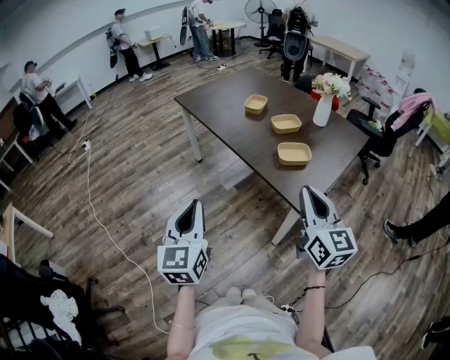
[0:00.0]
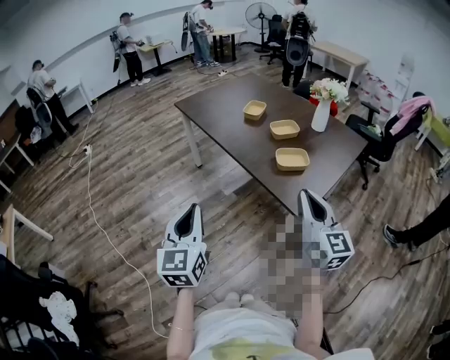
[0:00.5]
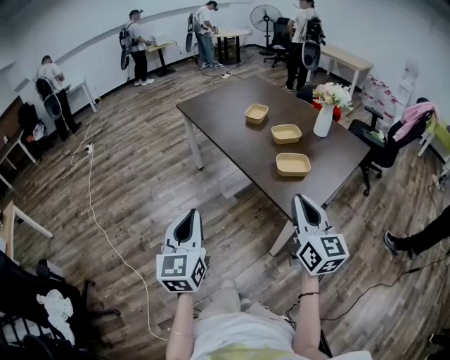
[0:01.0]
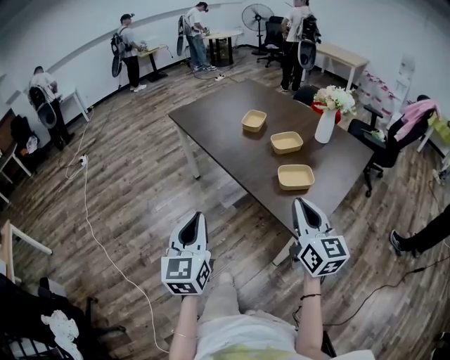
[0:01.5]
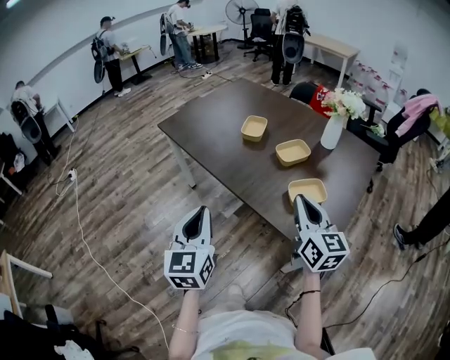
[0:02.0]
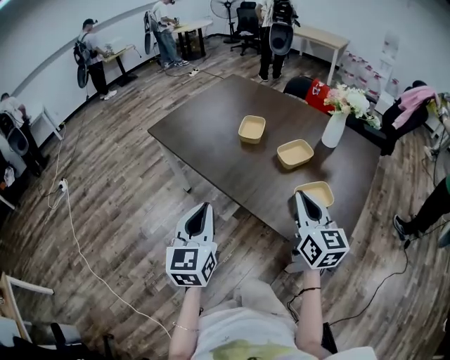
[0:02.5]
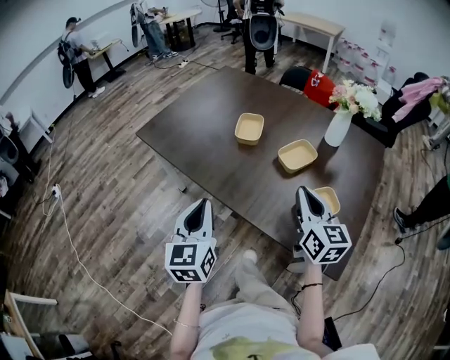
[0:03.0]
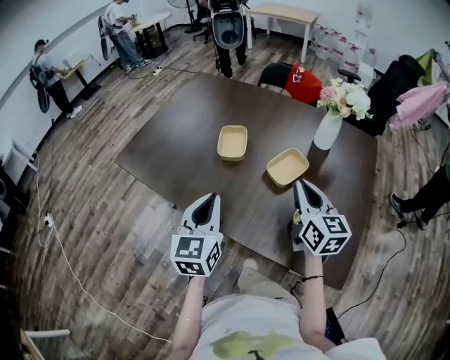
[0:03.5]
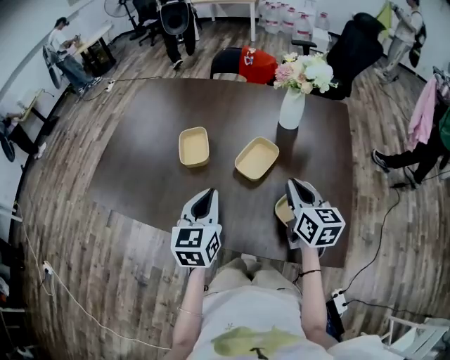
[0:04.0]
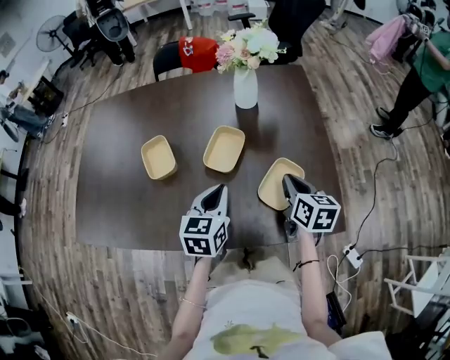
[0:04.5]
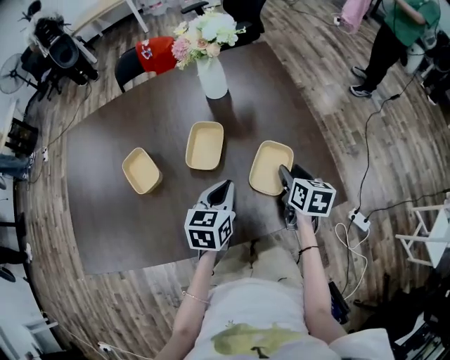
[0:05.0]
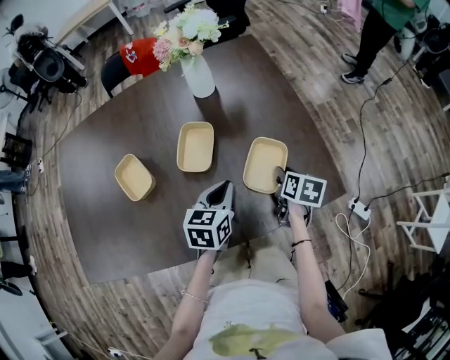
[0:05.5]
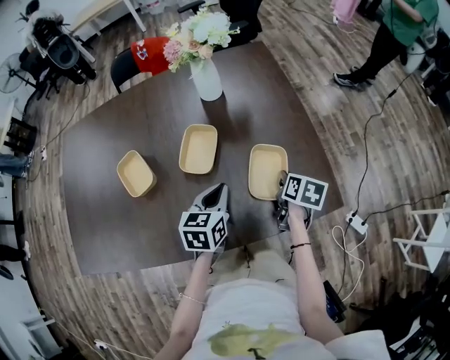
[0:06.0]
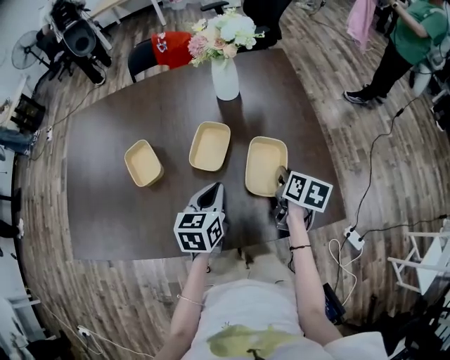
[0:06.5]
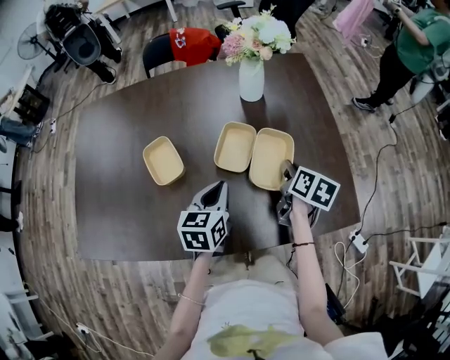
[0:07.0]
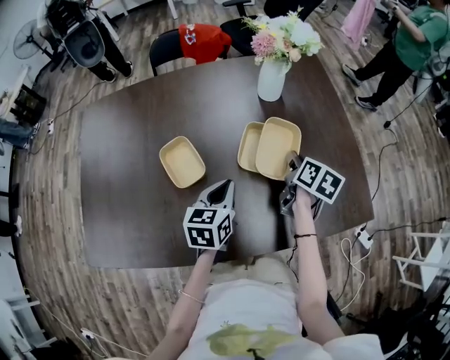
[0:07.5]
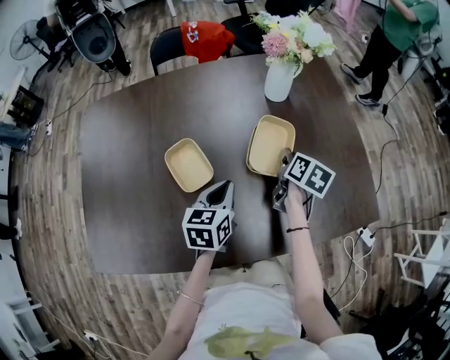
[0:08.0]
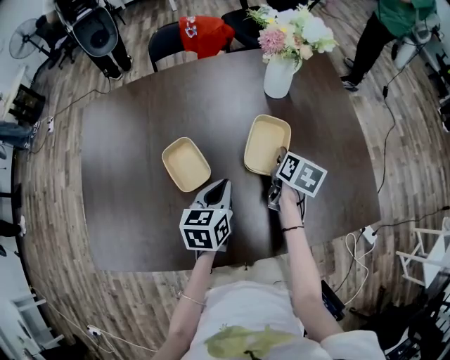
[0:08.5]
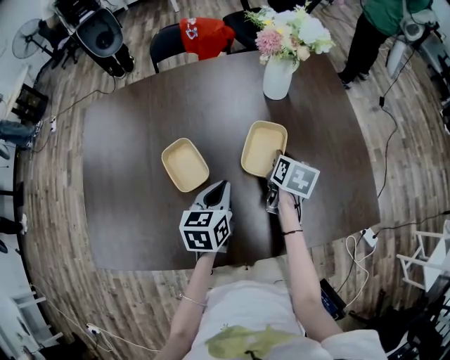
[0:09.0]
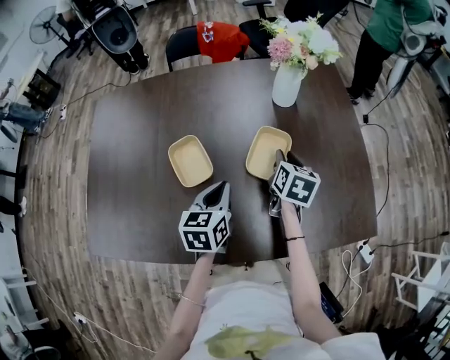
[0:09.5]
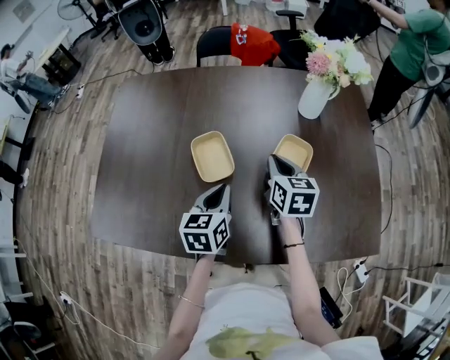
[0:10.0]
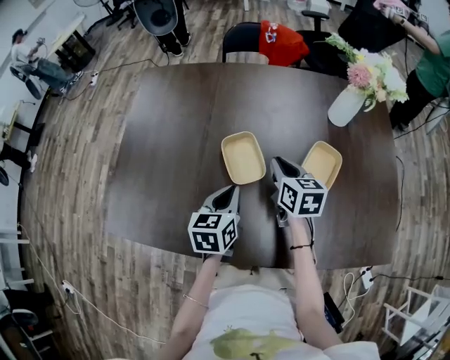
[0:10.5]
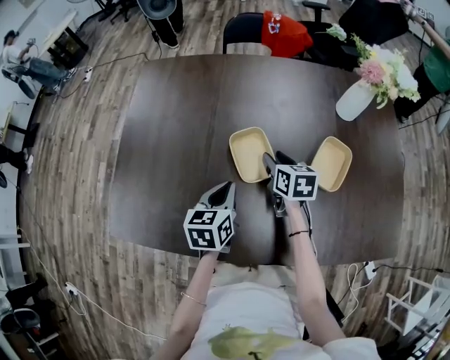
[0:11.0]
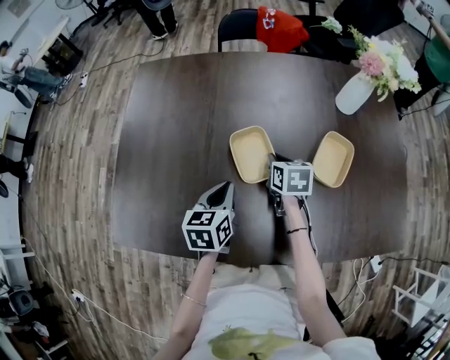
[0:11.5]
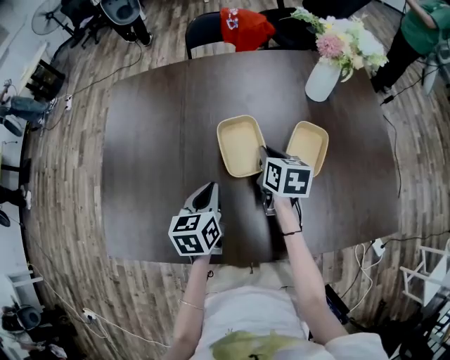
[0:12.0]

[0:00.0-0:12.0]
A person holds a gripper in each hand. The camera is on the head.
0:00.0 to 0:02.0: The grippers both shift forward by about 25 cm.
0:02.0 to 0:04.0: The right gripper ends up roughly 20 cm from where it was, and turns by about 30 degrees. The left gripper shifts by some 35 cm, and changes its angle by roughly 40 degrees.
0:04.0 to 0:06.0: The right gripper heads downward, covering about 15 cm, tilts its fingers approximately 30 degrees downward, and opens, then closes once more. Meanwhile the left gripper moves roughly 20 cm, and changes its angle by approximately 40 degrees.
0:06.0 to 0:08.0: The two grippers go approximately 20 cm to the left.
0:08.0 to 0:10.0: The left gripper heads to the left, covering approximately 5 cm. The right gripper travels to the left and upward by approximately 15 cm, and swivels roughly 40 degrees.
0:10.0 to 0:12.0: Both grippers travel together to the left, about 10 cm. The right gripper opens, then closes again.

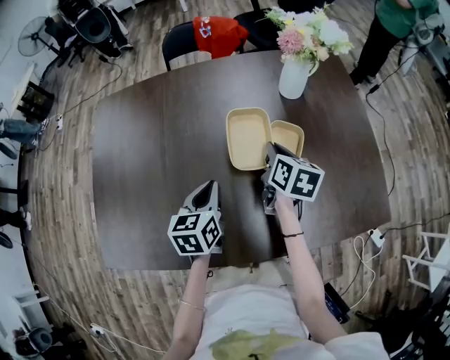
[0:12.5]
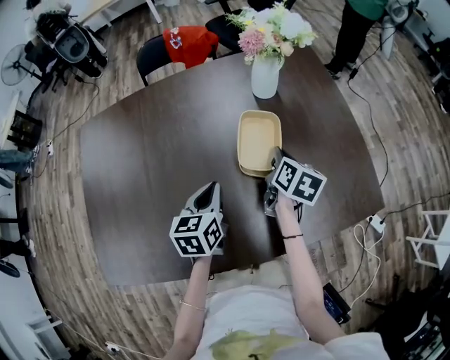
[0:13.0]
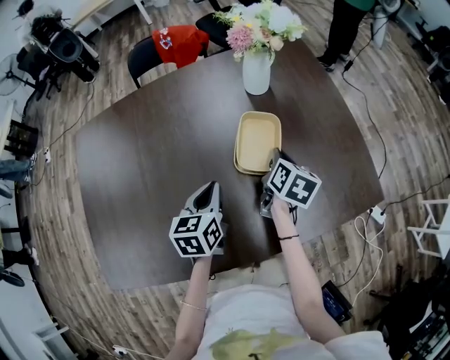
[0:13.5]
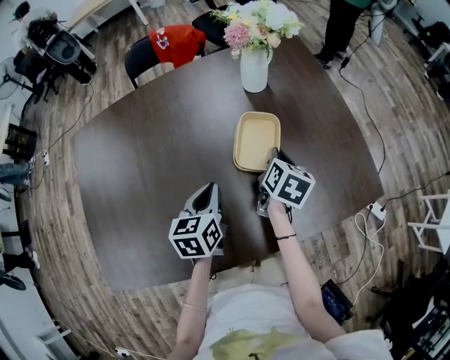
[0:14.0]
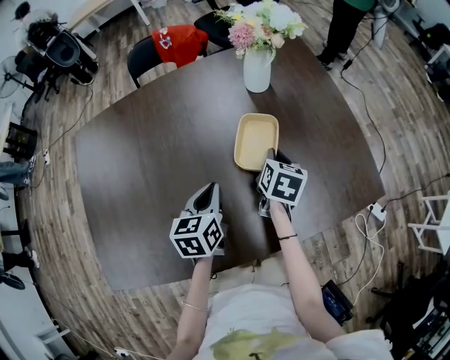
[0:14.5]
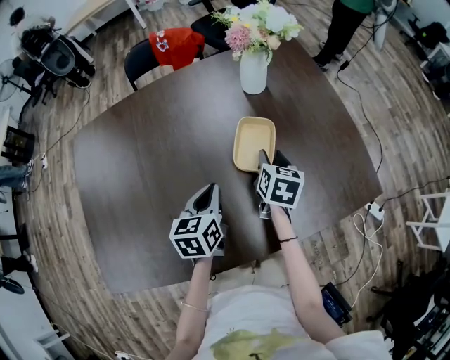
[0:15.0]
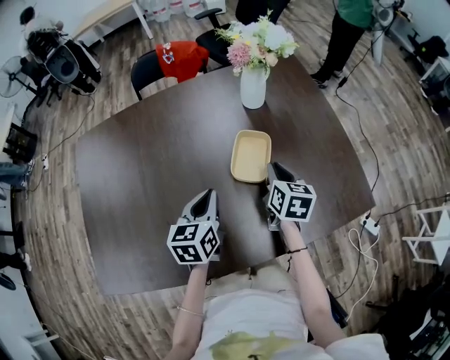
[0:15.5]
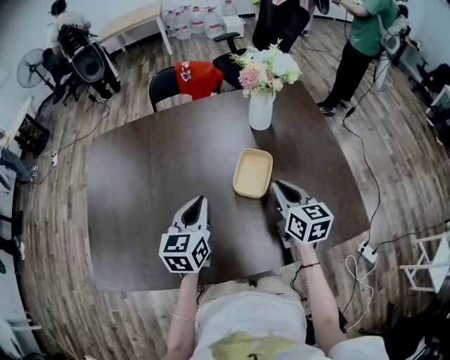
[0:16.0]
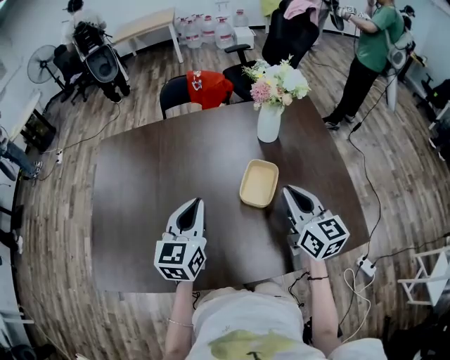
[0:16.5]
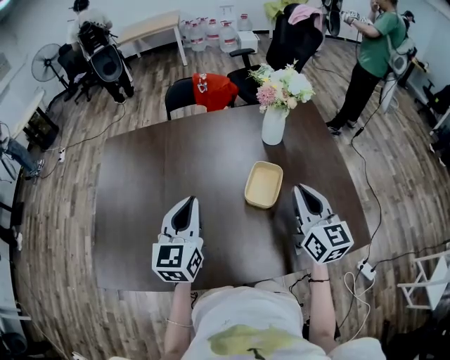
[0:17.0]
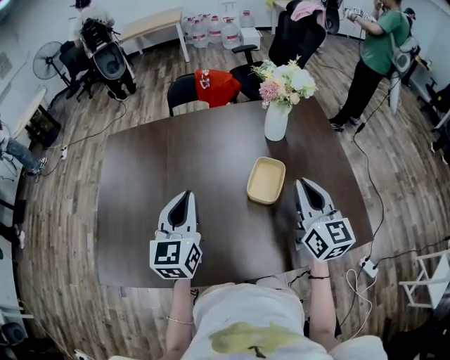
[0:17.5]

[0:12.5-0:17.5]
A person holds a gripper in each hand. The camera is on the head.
0:12.5 to 0:15.0: The grippers both shift to the right by some 5 cm. The right gripper opens up.
0:15.0 to 0:17.5: The right gripper shifts approximately 20 cm upward, points its fingers approximately 40 degrees further upward, and closes its fingers. Meanwhile the left gripper heads upward and to the left, covering some 20 cm, and rotates approximately 30 degrees.

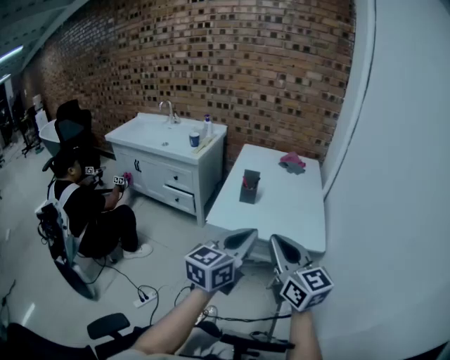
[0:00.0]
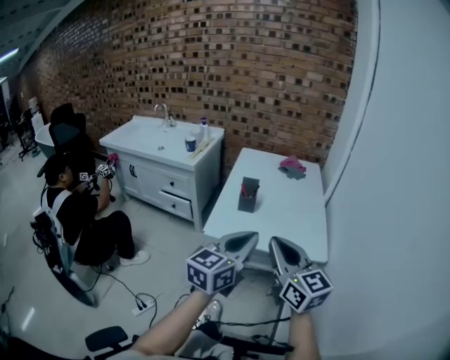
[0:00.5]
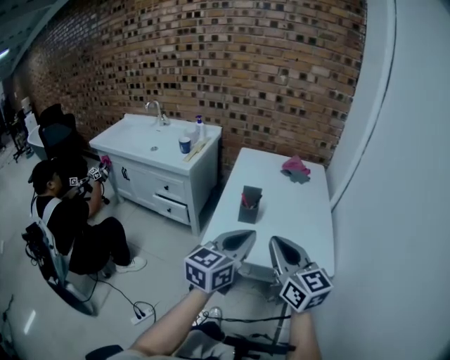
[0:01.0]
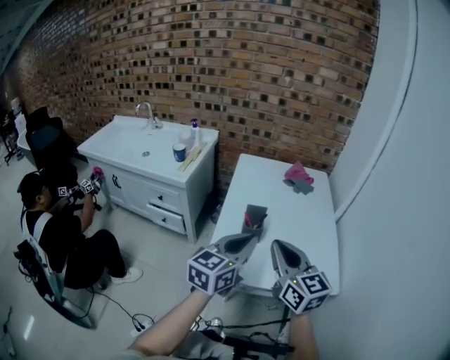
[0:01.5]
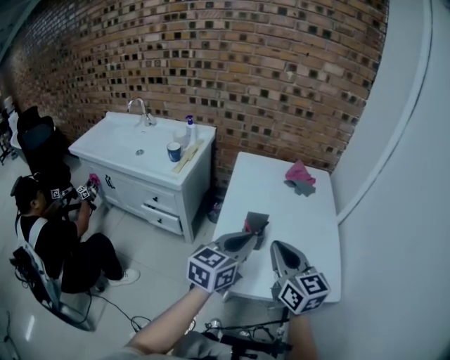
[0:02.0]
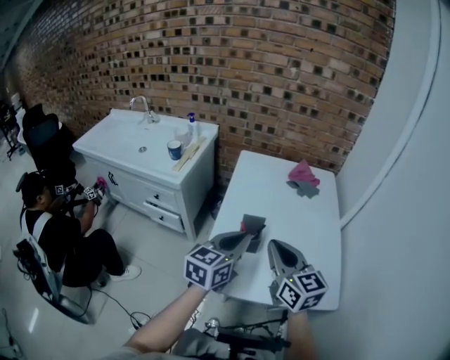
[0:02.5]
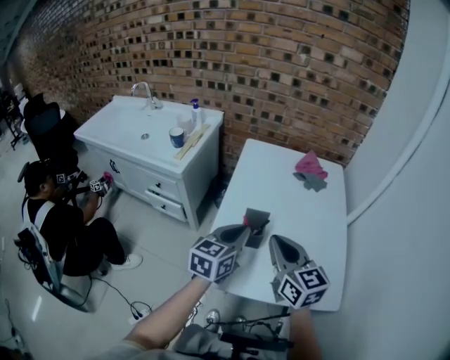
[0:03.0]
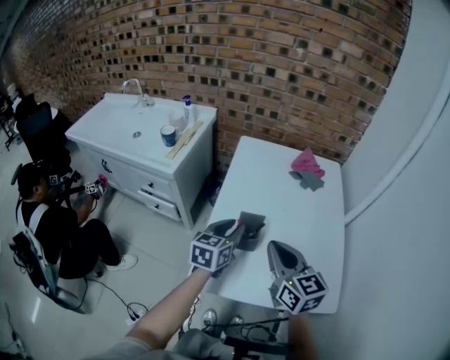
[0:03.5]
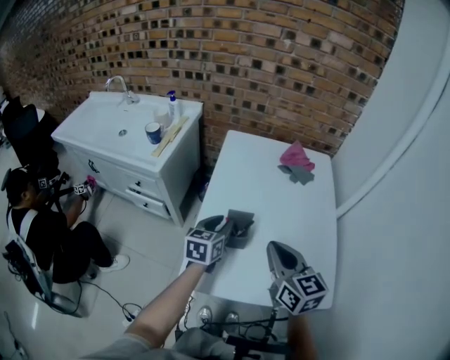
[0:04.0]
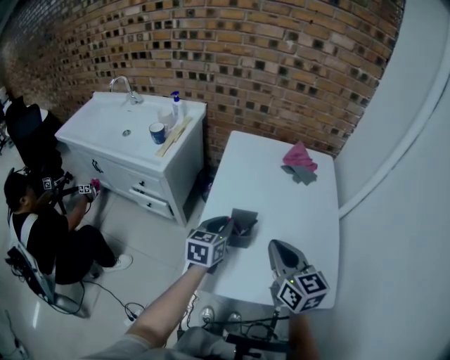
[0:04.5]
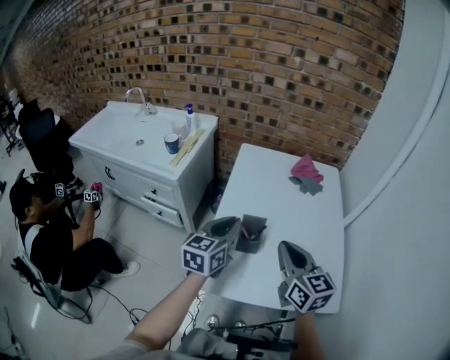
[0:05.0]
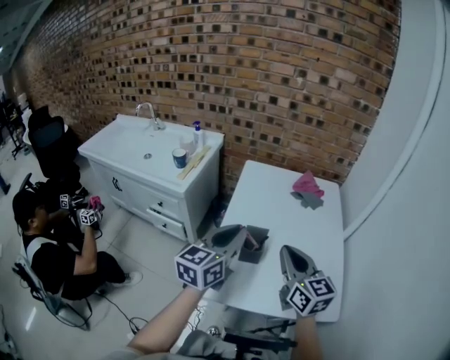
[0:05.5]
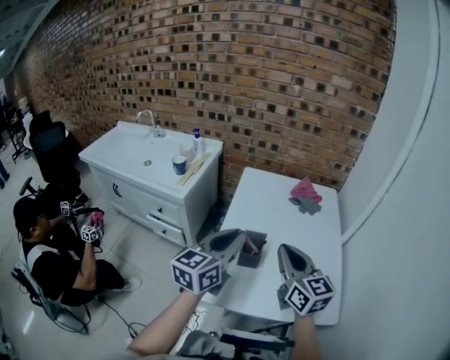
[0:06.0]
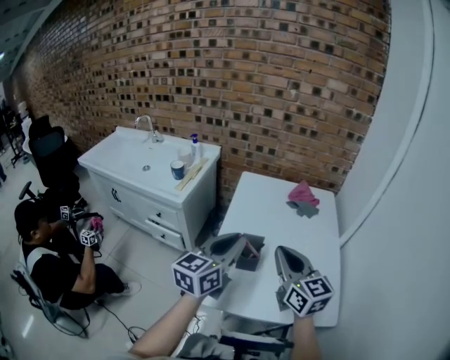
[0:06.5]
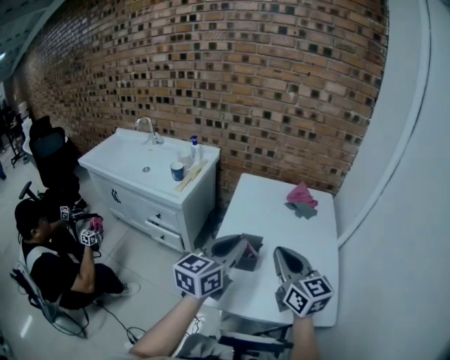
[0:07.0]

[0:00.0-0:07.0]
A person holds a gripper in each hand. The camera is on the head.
0:00.0 to 0:02.0: The grippers both shift forward by approximately 35 cm.
0:02.0 to 0:03.5: The left gripper travels downward and forward by roughly 20 cm, and opens up, while the right gripper shifts roughly 10 cm forward and downward.
0:03.5 to 0:05.0: The left gripper is displaced upward by approximately 5 cm.
0:05.0 to 0:07.0: The right gripper shifts approximately 5 cm upward. Meanwhile the left gripper shifts approximately 10 cm upward and backward.

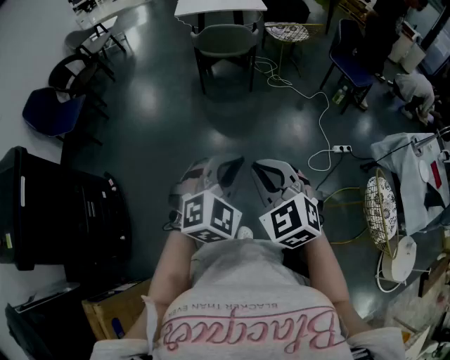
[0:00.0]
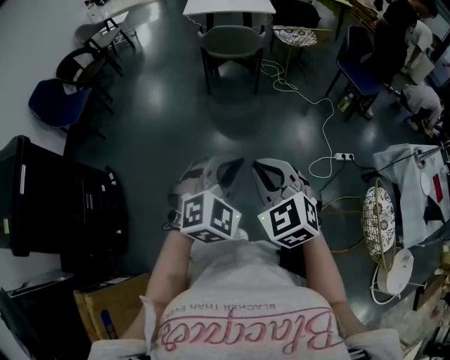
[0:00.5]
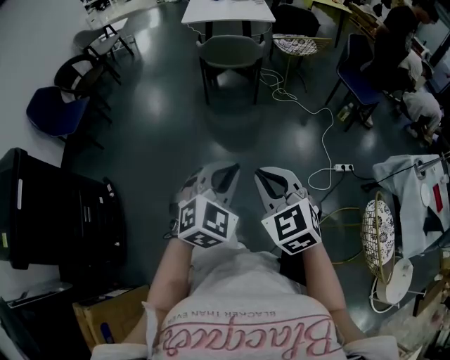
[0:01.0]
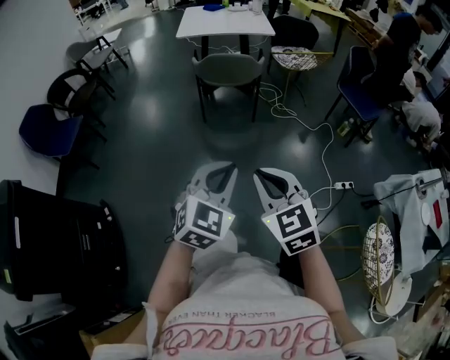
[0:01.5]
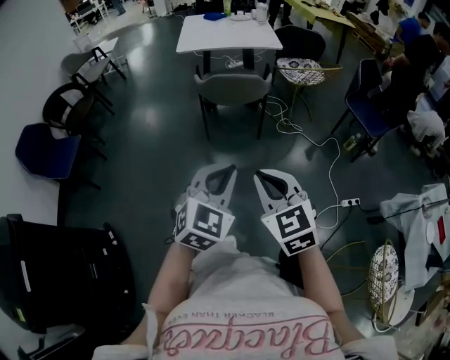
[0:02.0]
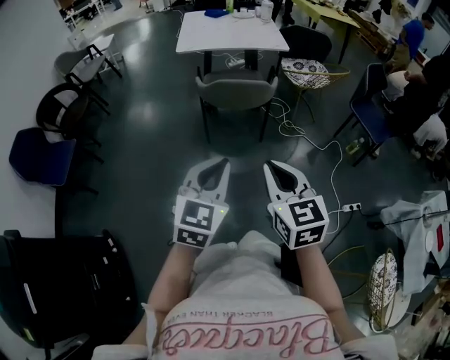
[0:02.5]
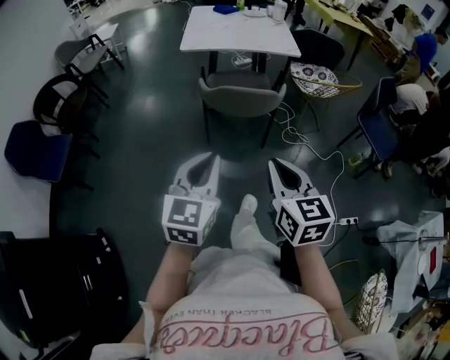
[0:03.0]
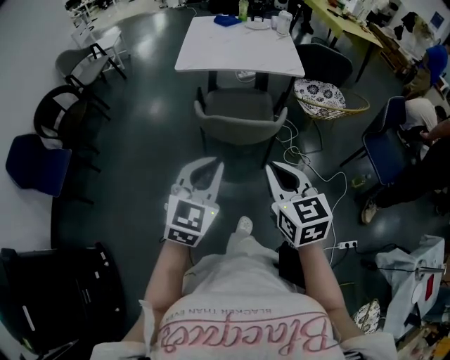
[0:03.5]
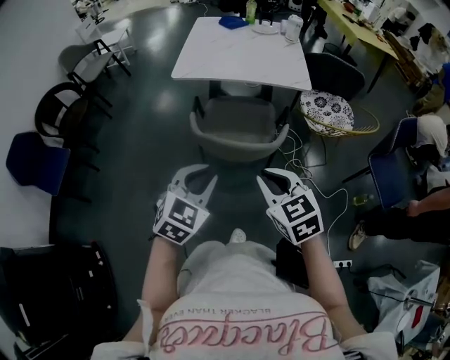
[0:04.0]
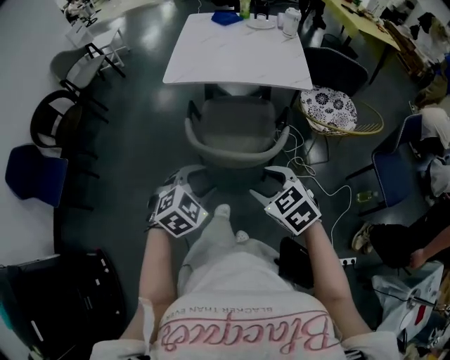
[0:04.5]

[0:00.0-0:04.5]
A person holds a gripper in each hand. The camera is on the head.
0:00.0 to 0:02.0: Both grippers move forward, some 40 cm.
0:02.0 to 0:04.5: The two grippers travel together, forward, roughly 50 cm. The right gripper turns by some 30 degrees, and opens its fingers, while the left gripper turns by about 30 degrees, and opens.
